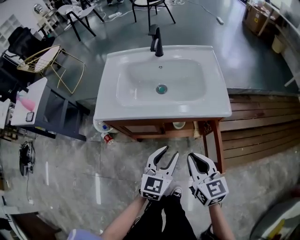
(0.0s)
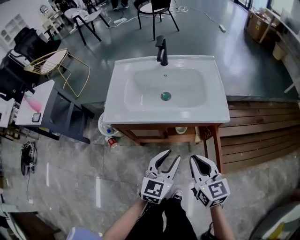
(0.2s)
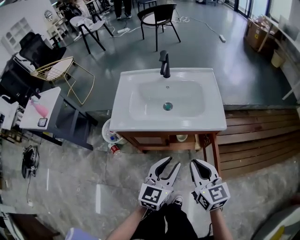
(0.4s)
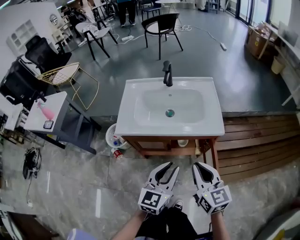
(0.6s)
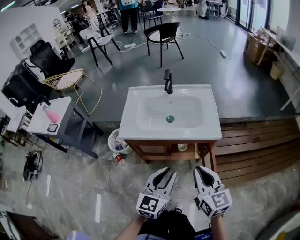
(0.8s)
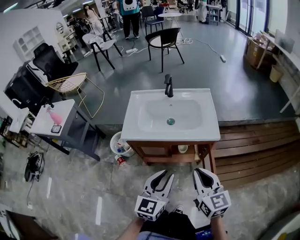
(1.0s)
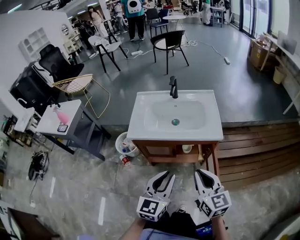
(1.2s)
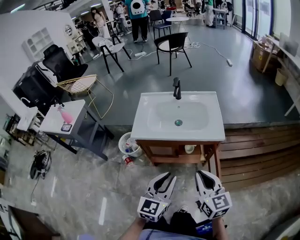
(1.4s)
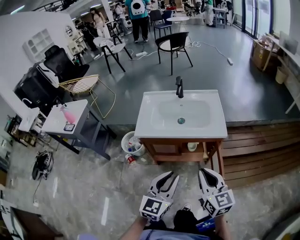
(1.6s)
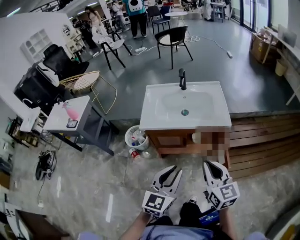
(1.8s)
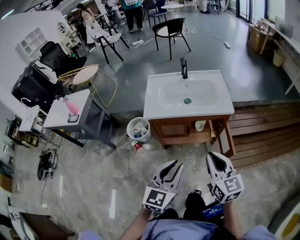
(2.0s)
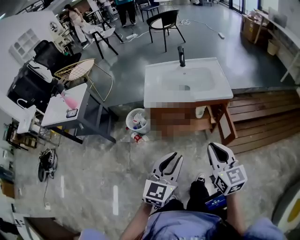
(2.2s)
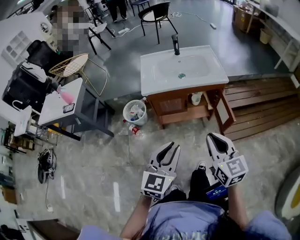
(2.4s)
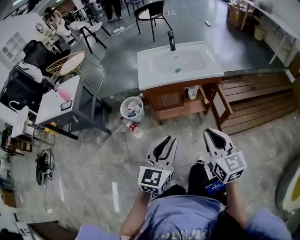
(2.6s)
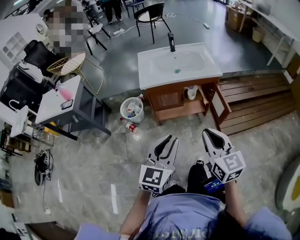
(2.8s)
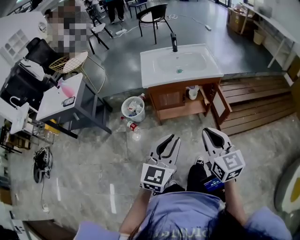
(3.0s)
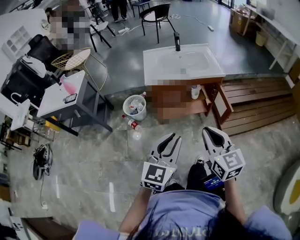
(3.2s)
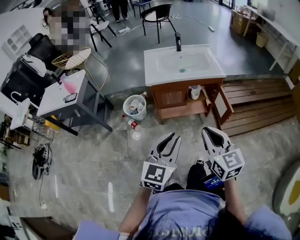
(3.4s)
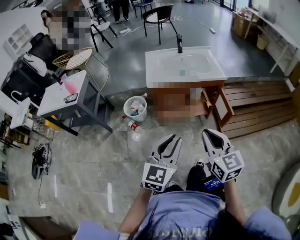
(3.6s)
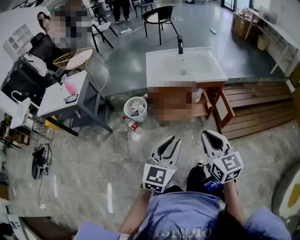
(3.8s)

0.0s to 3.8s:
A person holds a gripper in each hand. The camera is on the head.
0.0s to 1.2s: Both grippers travel together upward and backward, some 20 cm.
1.2s to 2.6s: Both grippers move backward and to the left, approximately 25 cm.
2.6s to 3.8s: The right gripper moves roughly 5 cm.

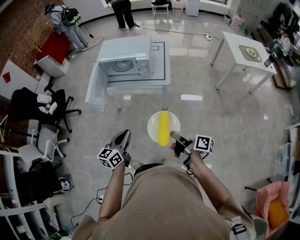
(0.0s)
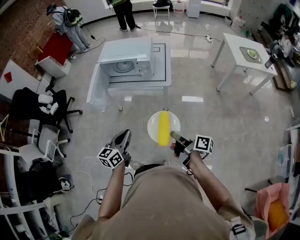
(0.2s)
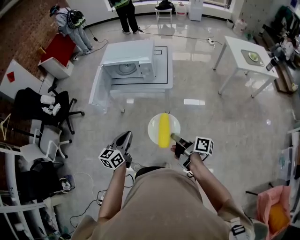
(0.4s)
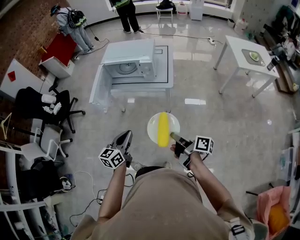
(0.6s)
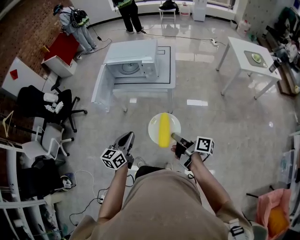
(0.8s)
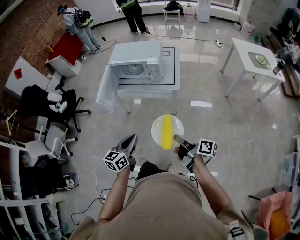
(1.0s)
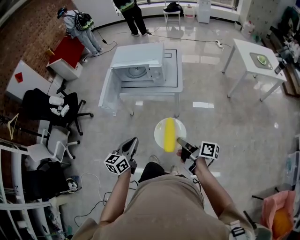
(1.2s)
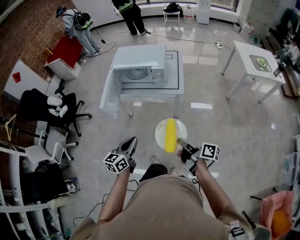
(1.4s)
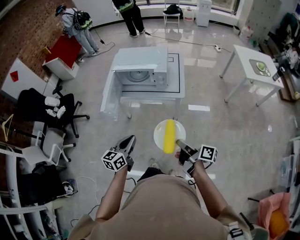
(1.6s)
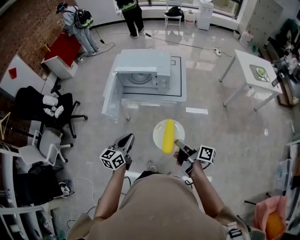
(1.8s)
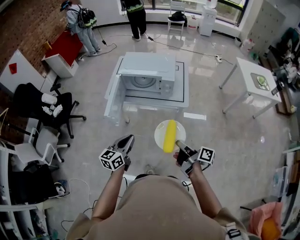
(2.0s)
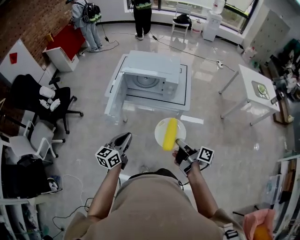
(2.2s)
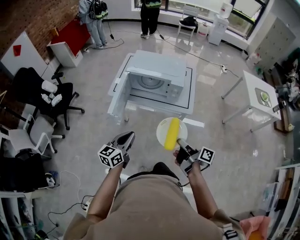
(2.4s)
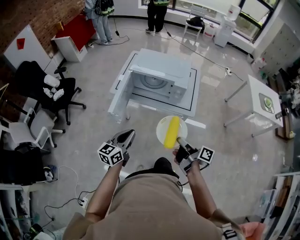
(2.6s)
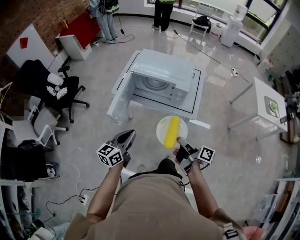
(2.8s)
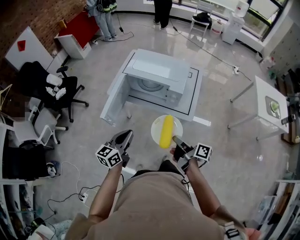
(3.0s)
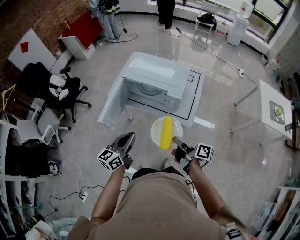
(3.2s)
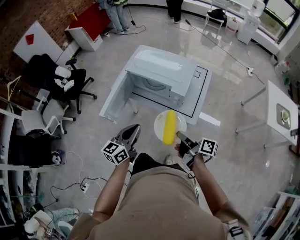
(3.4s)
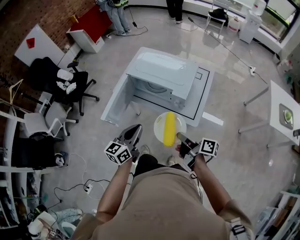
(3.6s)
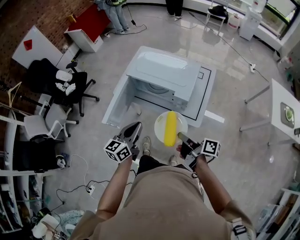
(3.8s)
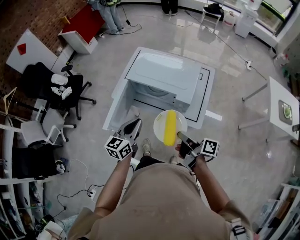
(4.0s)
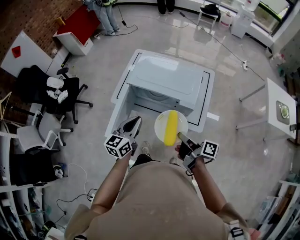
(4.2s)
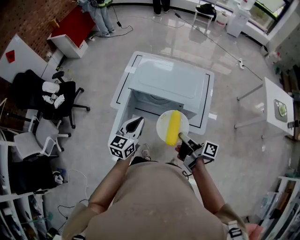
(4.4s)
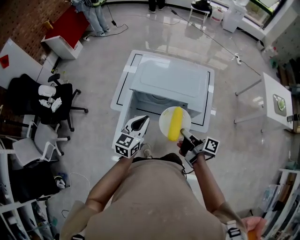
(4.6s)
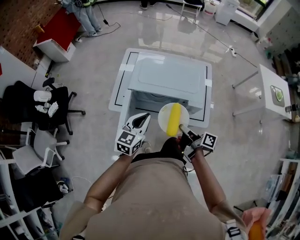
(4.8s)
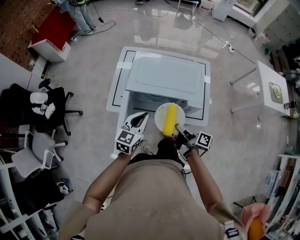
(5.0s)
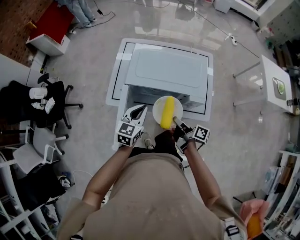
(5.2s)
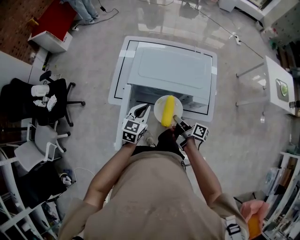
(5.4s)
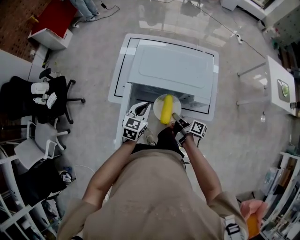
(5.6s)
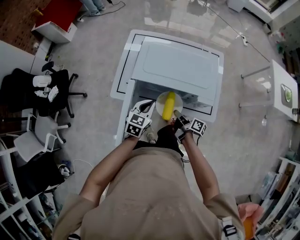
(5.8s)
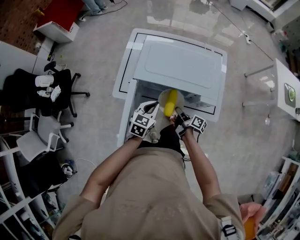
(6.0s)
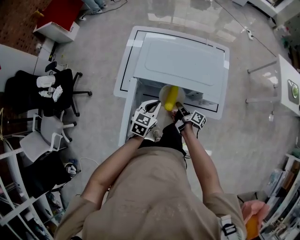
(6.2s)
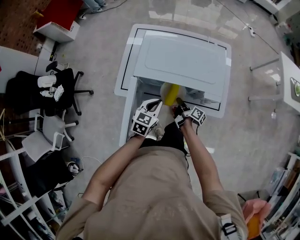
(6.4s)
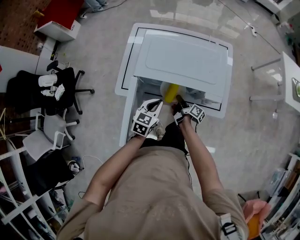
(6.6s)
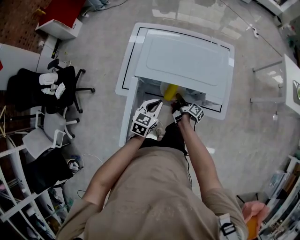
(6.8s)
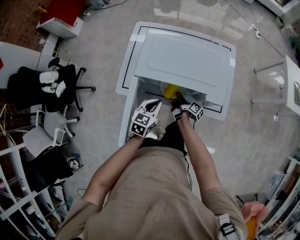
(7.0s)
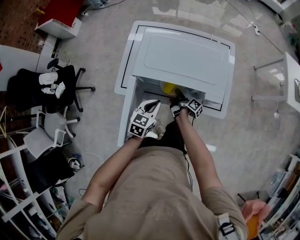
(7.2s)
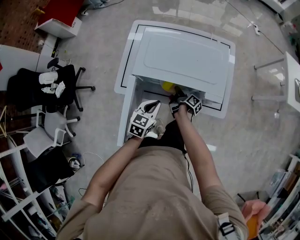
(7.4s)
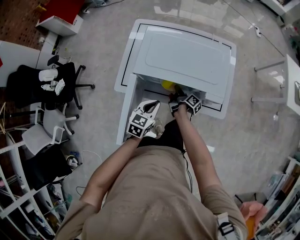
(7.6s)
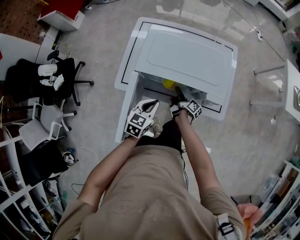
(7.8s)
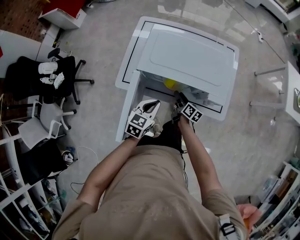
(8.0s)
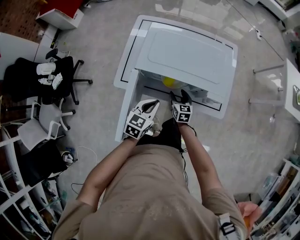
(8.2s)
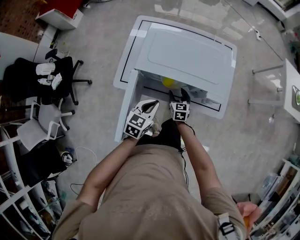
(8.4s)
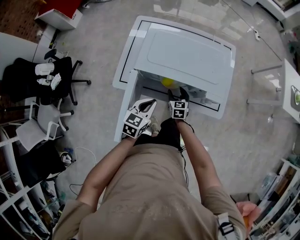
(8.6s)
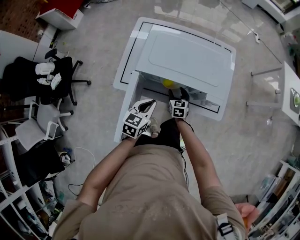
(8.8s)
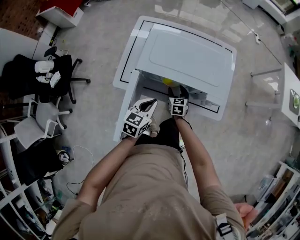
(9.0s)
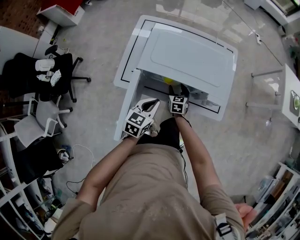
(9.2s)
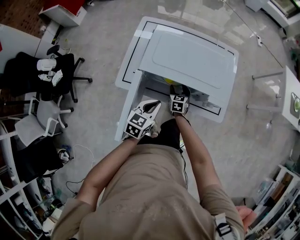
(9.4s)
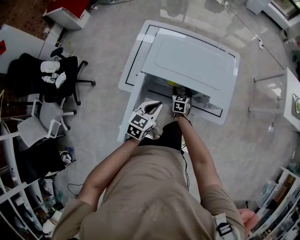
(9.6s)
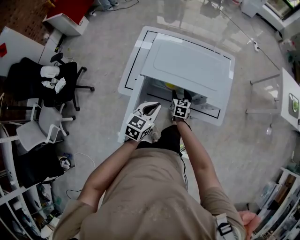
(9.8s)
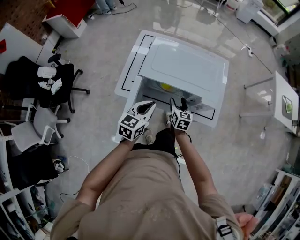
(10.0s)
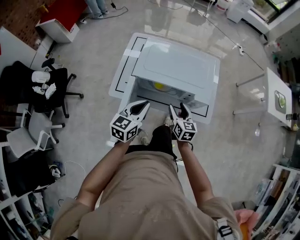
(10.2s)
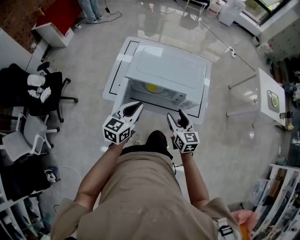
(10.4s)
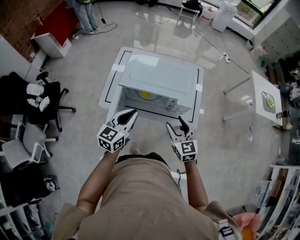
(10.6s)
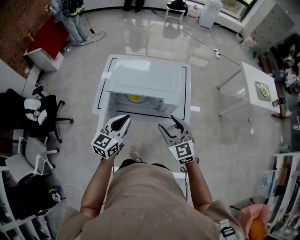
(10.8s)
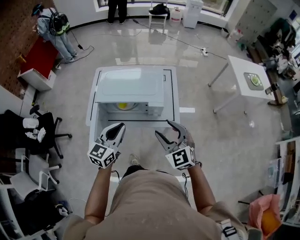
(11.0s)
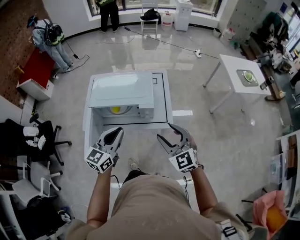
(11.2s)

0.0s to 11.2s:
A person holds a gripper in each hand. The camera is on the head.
0.0s to 1.6s: The grippers both shift to the left by roughly 5 cm.
1.6s to 3.2s: The two grippers go about 20 cm forward.
3.2s to 4.8s: The left gripper heads forward, covering approximately 25 cm, and rotates some 30 degrees; the right gripper shifts roughly 25 cm forward and to the left.
4.8s to 6.4s: The left gripper travels downward by about 15 cm. The right gripper shifts some 25 cm downward and forward.
6.4s to 8.0s: The right gripper turns by some 30 degrees, and opens up.
8.0s to 9.6s: The right gripper travels forward by some 5 cm, and rolls counterclockwise, seen from behind, by approximately 50 degrees.
9.6s to 11.2s: The left gripper heads upward, to the right and backward, covering roughly 30 cm, and swivels approximately 30 degrees, while the right gripper is displaced upward, backward and to the right by approximately 60 cm, and rotates approximately 40 degrees.

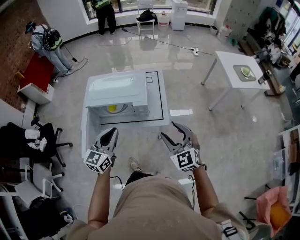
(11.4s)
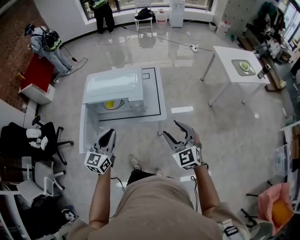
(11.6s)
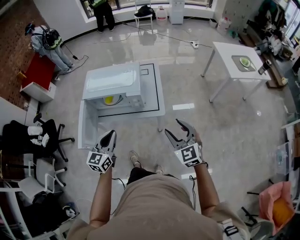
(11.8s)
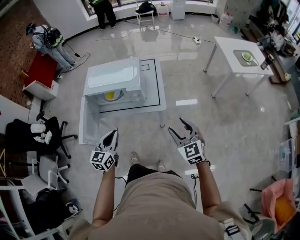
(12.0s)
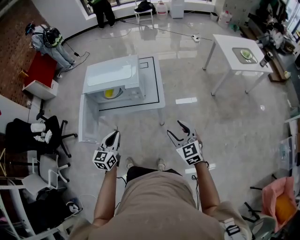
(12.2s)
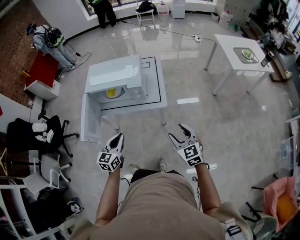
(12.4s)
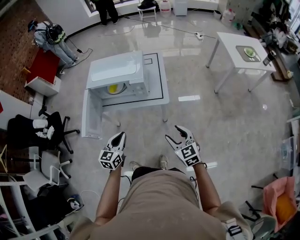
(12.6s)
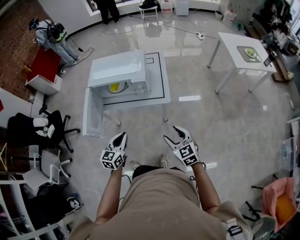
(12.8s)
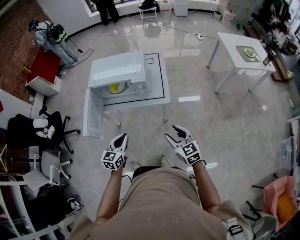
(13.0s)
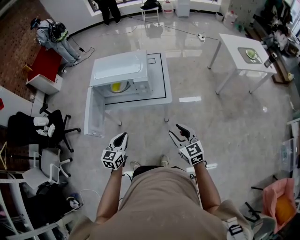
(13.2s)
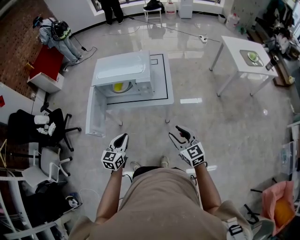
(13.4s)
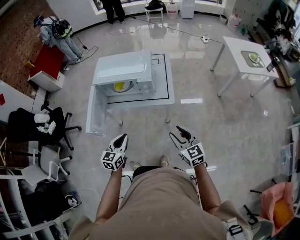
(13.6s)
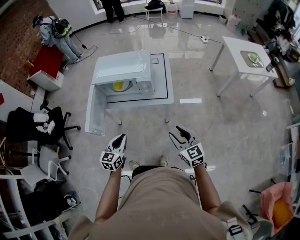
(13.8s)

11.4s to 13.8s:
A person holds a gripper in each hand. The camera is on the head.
11.4s to 12.6s: The grippers both shift downward and backward by some 20 cm. The right gripper rotates some 20 degrees.
12.6s to 13.8s: The grippers move only a little.

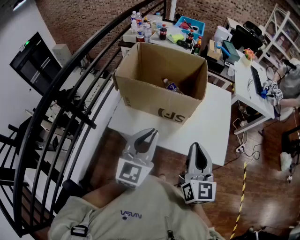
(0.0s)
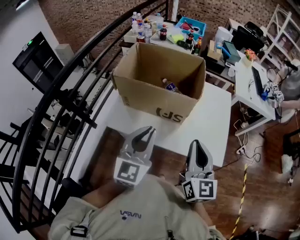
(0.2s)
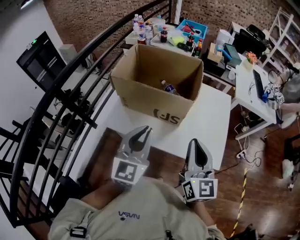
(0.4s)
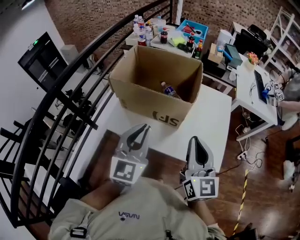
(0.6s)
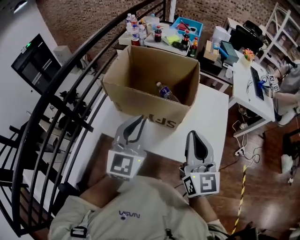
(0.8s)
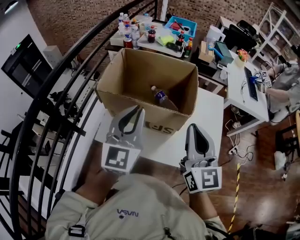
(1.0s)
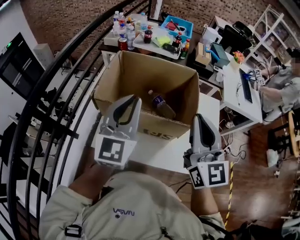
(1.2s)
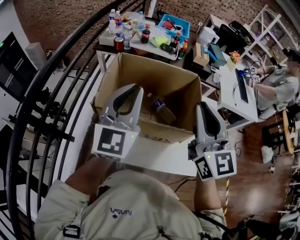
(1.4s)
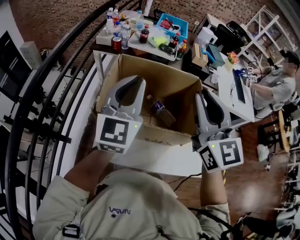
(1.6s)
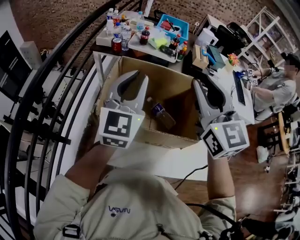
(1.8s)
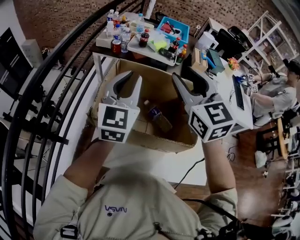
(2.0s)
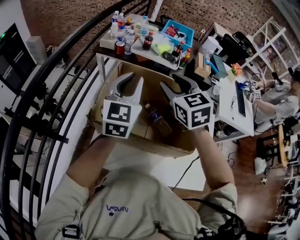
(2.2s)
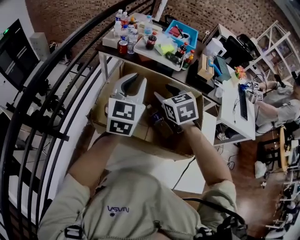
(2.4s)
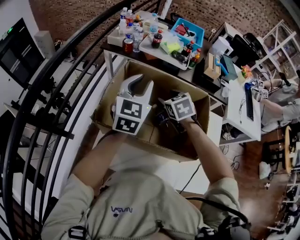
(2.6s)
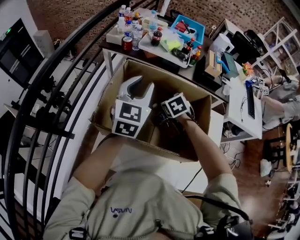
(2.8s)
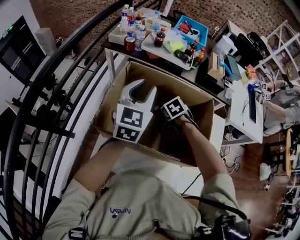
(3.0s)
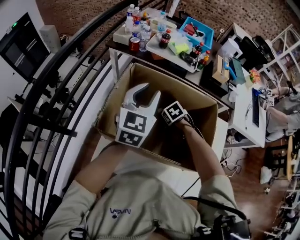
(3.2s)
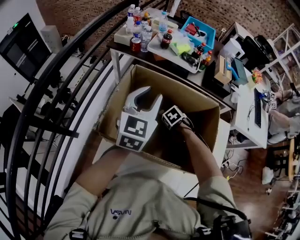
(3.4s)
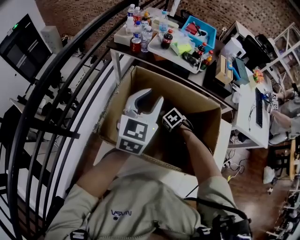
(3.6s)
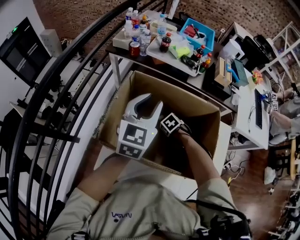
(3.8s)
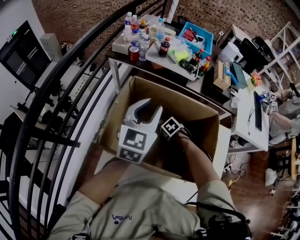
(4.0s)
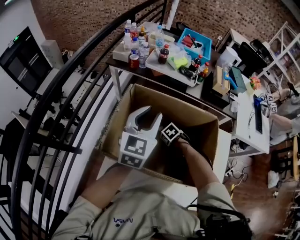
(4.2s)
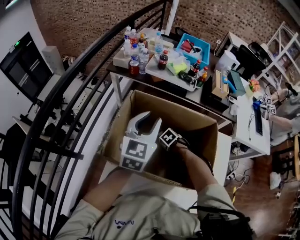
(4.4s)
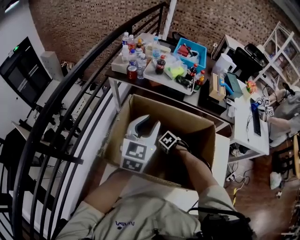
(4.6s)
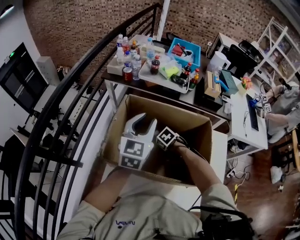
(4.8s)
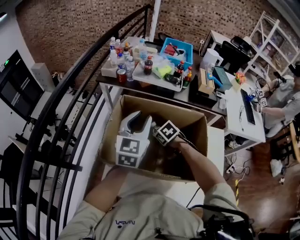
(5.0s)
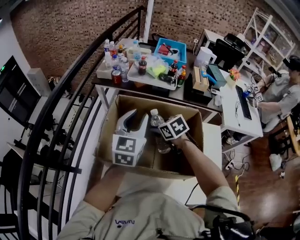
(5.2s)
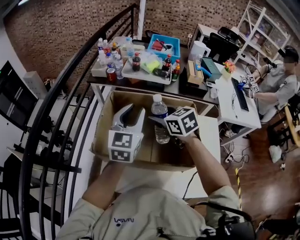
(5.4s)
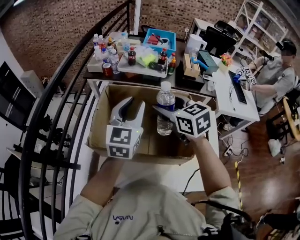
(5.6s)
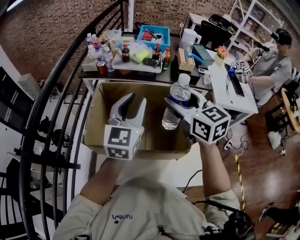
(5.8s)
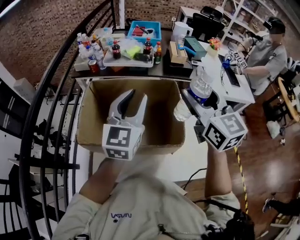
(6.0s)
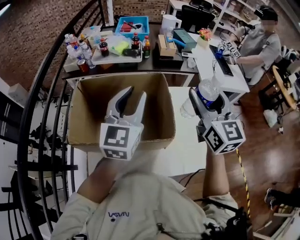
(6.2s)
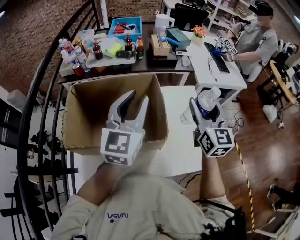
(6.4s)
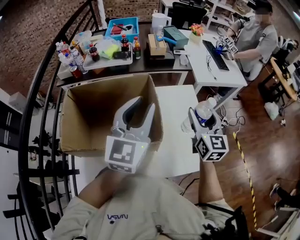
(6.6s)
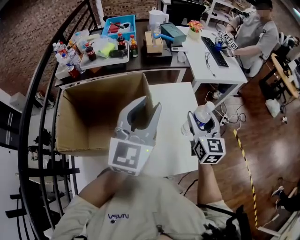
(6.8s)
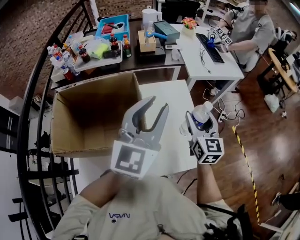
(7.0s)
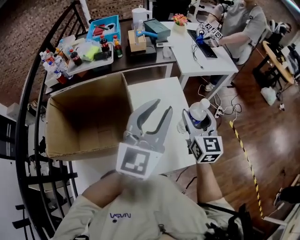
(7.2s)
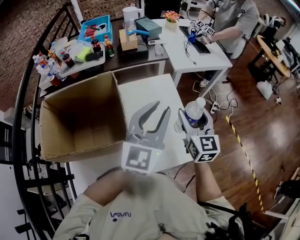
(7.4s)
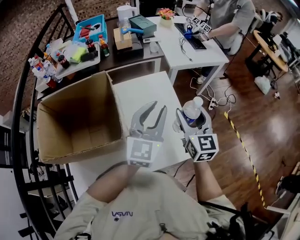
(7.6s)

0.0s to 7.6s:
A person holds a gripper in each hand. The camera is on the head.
0.0s to 1.6s: The right gripper goes roughly 30 cm forward and upward, and turns by roughly 20 degrees. Meanwhile the left gripper is displaced forward by about 30 cm.
1.6s to 3.0s: The left gripper shifts some 15 cm forward and downward, and opens, while the right gripper moves downward and forward, approximately 40 cm, tips its fingers downward by about 70 degrees, and opens.
3.0s to 4.6s: The right gripper shifts roughly 10 cm downward, and swivels roughly 20 degrees.
4.6s to 6.0s: The right gripper goes roughly 50 cm upward, and tilts its fingers some 80 degrees upward. Meanwhile the left gripper moves about 15 cm.
6.0s to 7.6s: The right gripper moves some 35 cm, and rotates about 30 degrees. Meanwhile the left gripper ends up roughly 35 cm from where it was, and rotates approximately 20 degrees.
